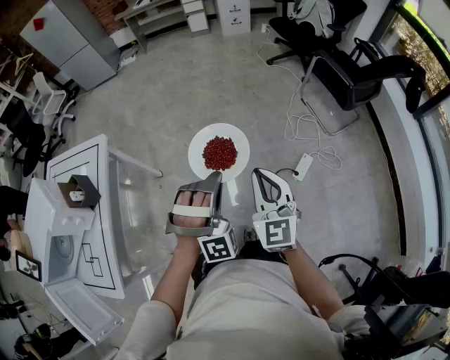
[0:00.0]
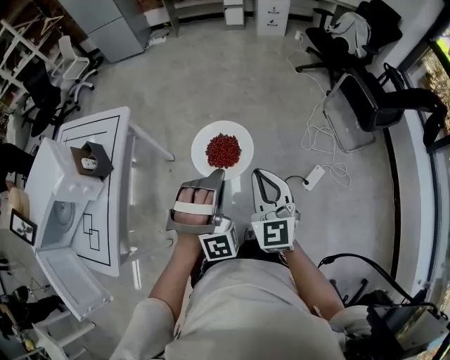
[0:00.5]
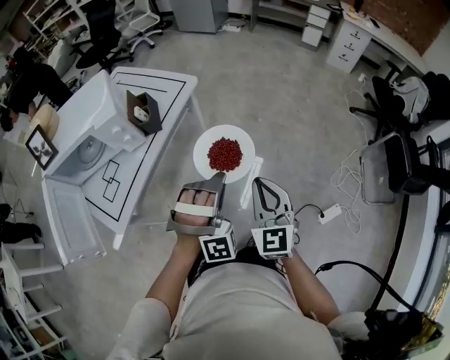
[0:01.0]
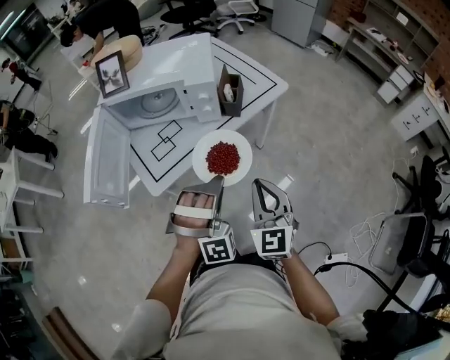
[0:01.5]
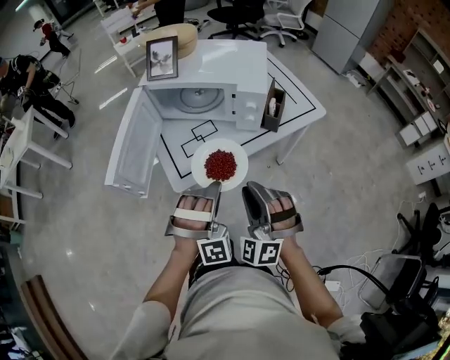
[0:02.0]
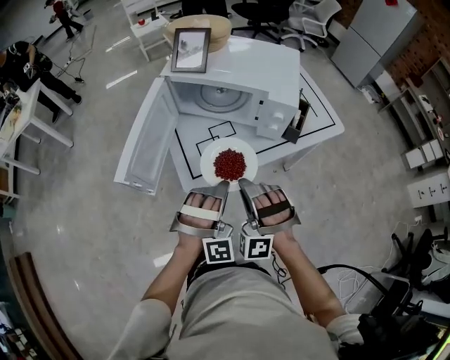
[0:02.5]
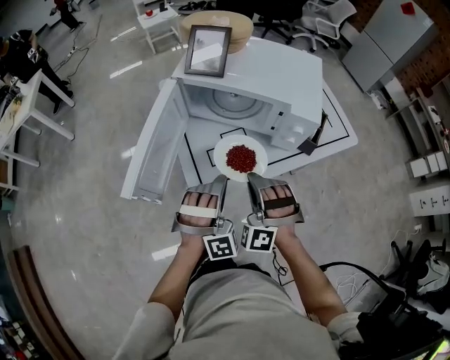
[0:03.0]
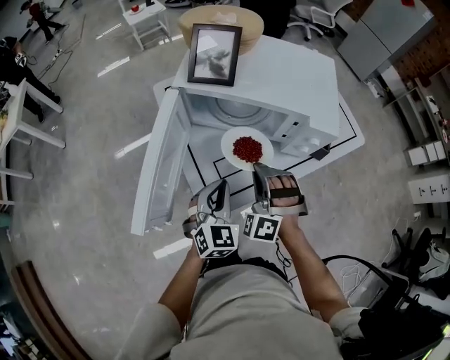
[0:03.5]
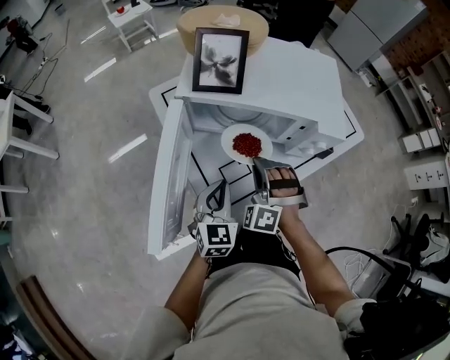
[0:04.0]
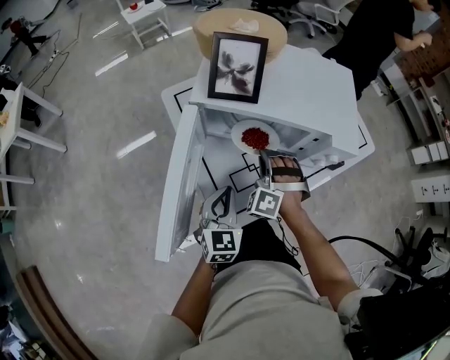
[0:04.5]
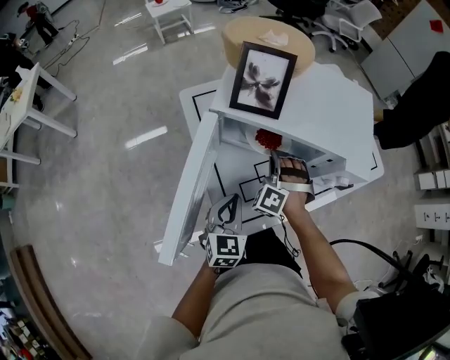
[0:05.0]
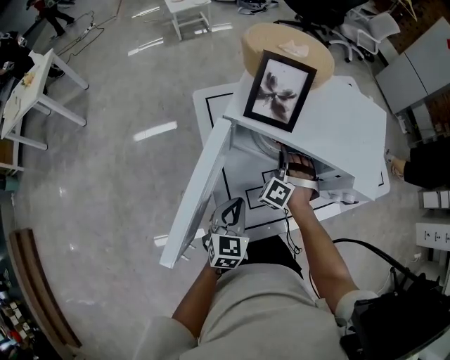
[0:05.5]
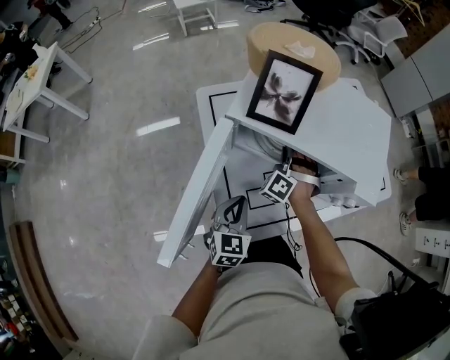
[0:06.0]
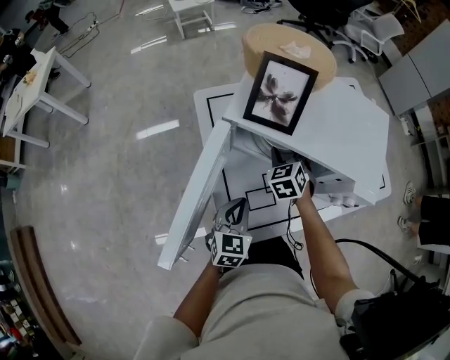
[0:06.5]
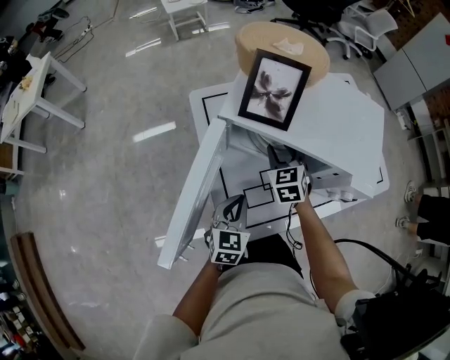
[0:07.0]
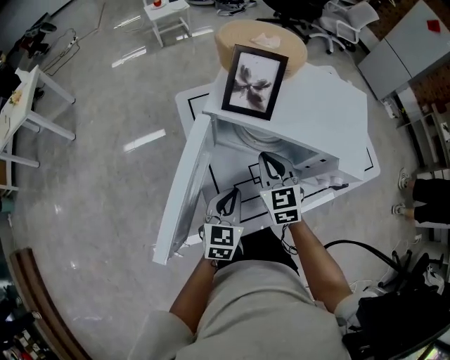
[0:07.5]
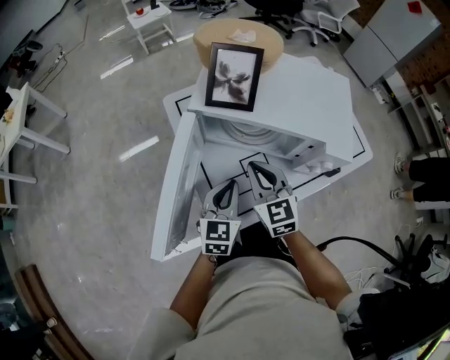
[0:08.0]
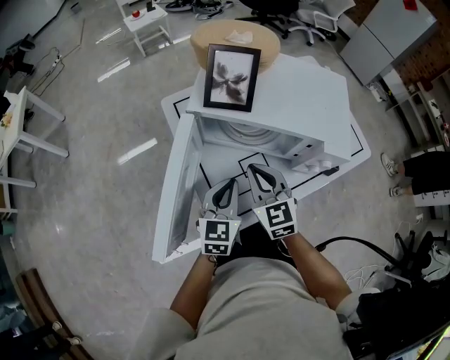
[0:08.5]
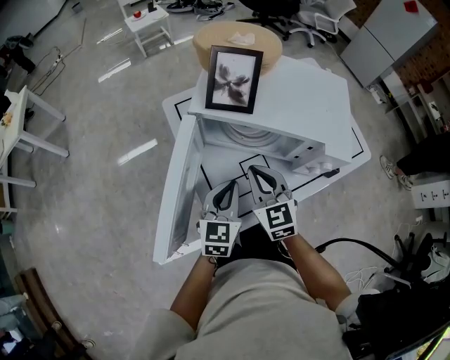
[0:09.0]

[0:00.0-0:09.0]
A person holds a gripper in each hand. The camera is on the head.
0:00.0 to 0:02.0: Both grippers are carried roughly 50 cm. The right gripper changes its angle by approximately 90 degrees, and opens up, while the left gripper swivels roughly 70 degrees.
0:02.0 to 0:04.5: The left gripper goes roughly 25 cm to the left, forward and downward, and rotates around the line of its fingers by about 80 degrees, counterclockwise from behind; the right gripper goes some 35 cm forward, to the left and downward, and changes its angle by about 30 degrees.
0:04.5 to 0:07.0: The right gripper shifts roughly 10 cm forward, rolls clockwise, seen from behind, by some 50 degrees, and opens.
0:07.0 to 0:09.0: The right gripper shifts roughly 15 cm backward and upward, and closes. Meanwhile the left gripper moves upward, some 5 cm.

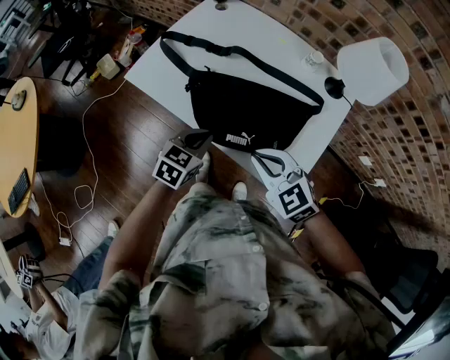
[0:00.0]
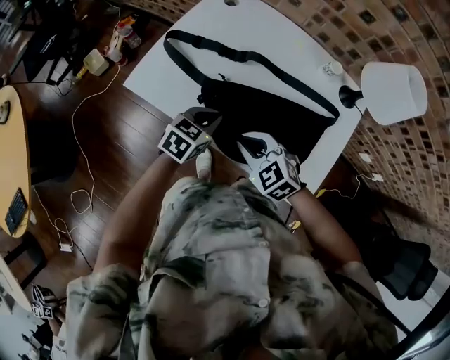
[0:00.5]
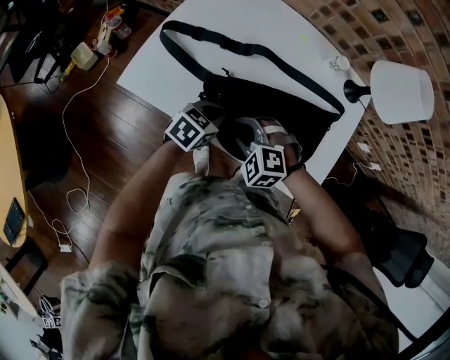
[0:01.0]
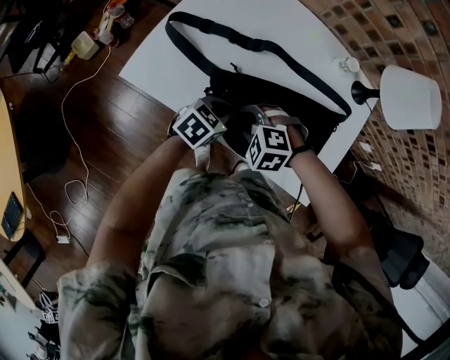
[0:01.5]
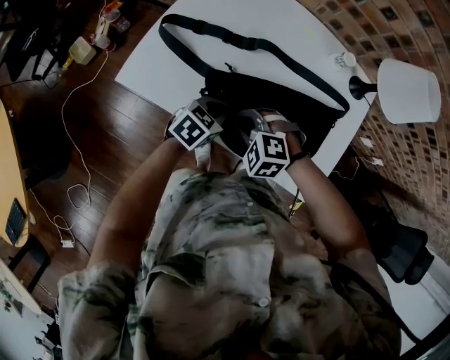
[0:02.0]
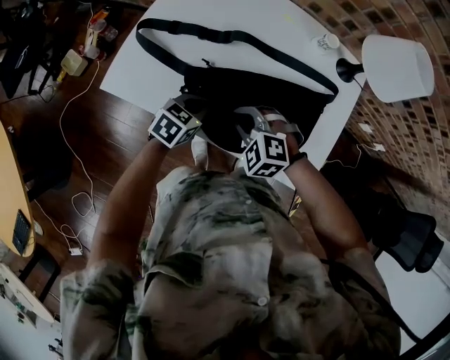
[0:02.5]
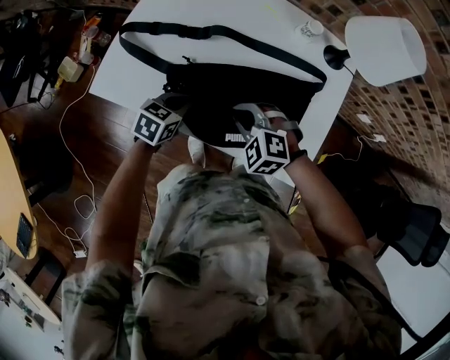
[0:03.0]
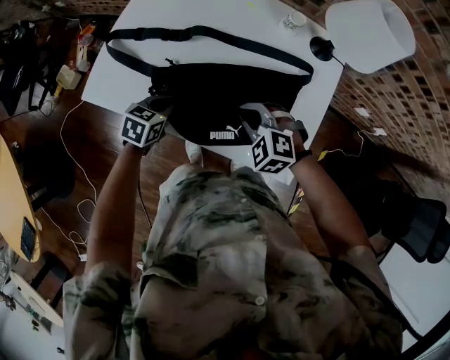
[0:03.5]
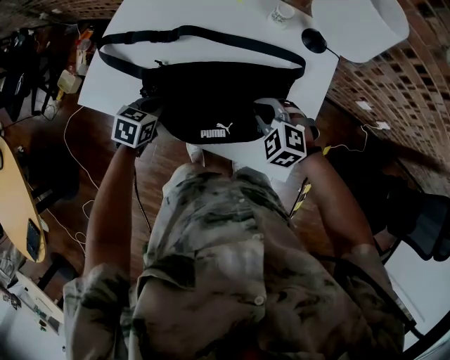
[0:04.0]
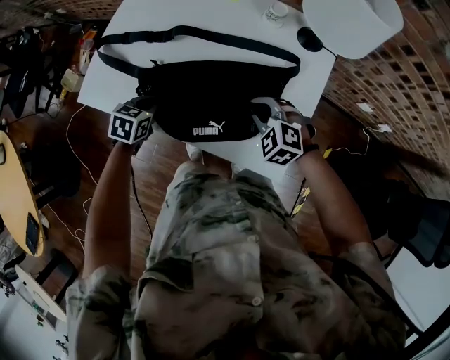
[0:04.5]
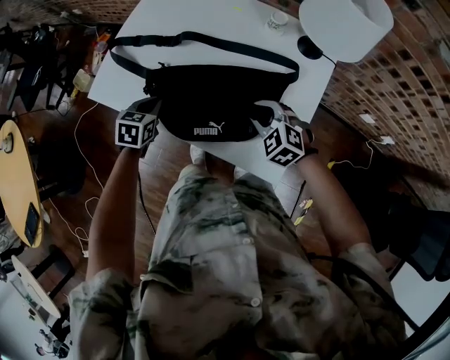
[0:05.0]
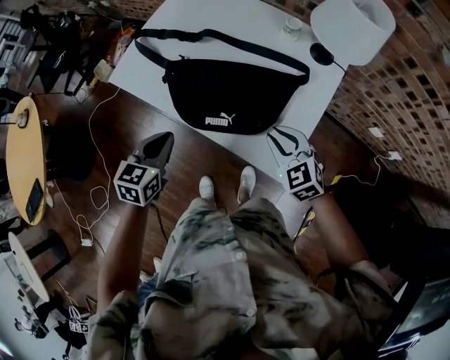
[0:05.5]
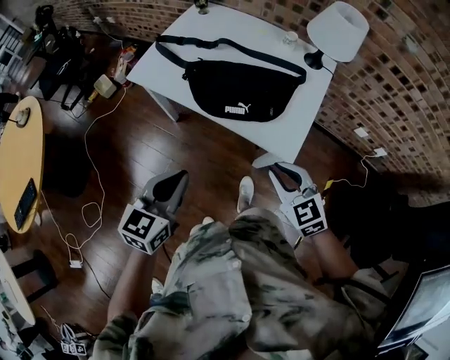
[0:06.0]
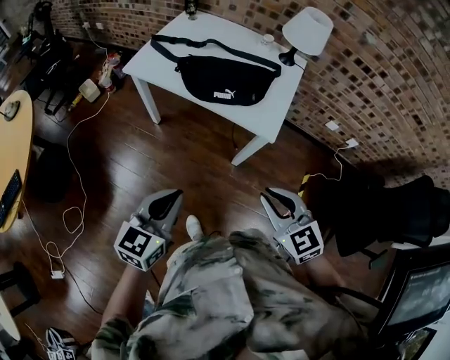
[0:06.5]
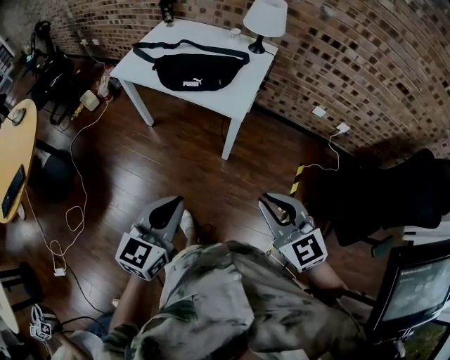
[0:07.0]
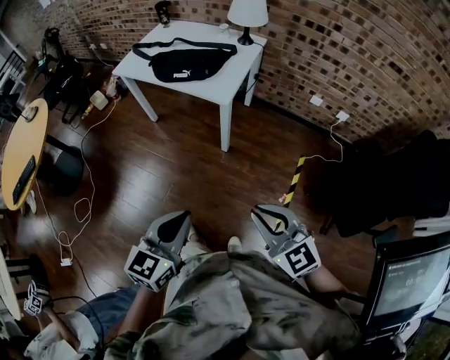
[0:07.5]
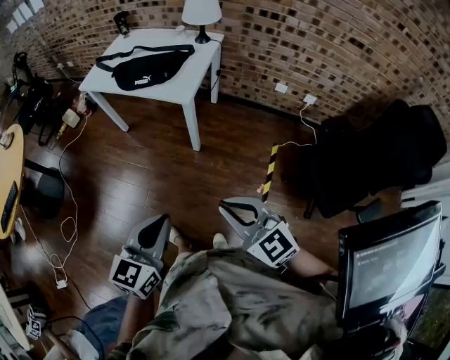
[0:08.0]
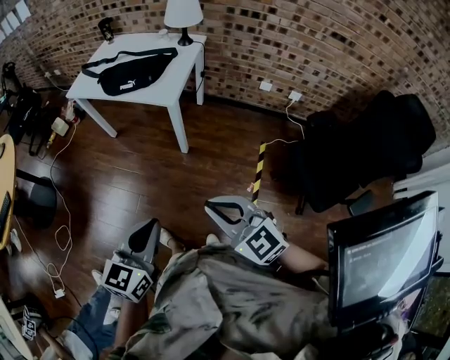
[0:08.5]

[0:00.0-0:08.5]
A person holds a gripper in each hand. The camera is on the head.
0:00.0 to 0:02.0: The left gripper moves some 15 cm, and swivels approximately 20 degrees, while the right gripper moves some 25 cm, changes its angle by approximately 40 degrees, and opens and closes again.
0:02.0 to 0:04.0: The right gripper heads to the right, covering approximately 20 cm, and swivels about 20 degrees.
0:04.0 to 0:06.5: The two grippers travel together, backward, approximately 50 cm. Both grippers travel together upward, some 25 cm. The left gripper points its fingers roughly 30 degrees further upward, while the right gripper swivels approximately 40 degrees.
0:06.5 to 0:08.5: Both grippers travel together backward and to the right, approximately 35 cm.

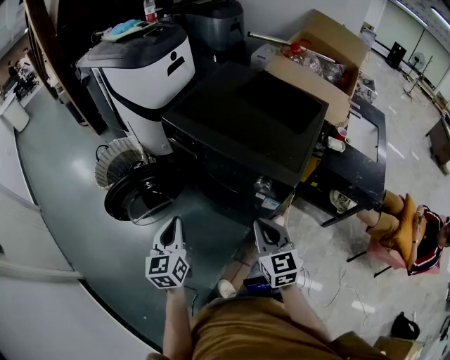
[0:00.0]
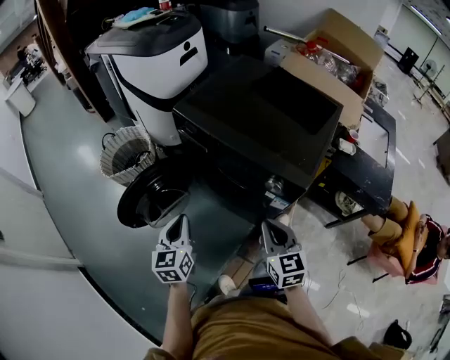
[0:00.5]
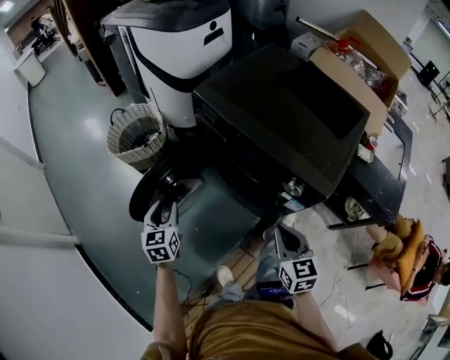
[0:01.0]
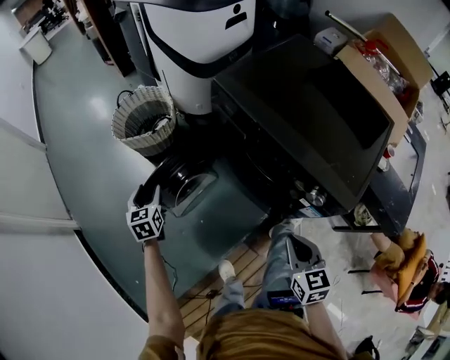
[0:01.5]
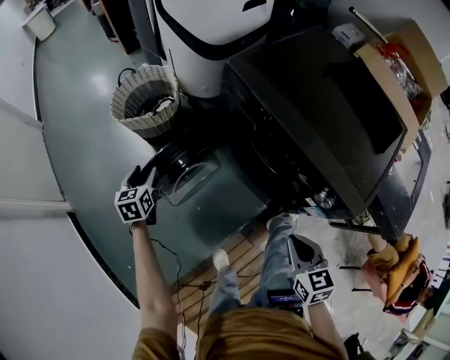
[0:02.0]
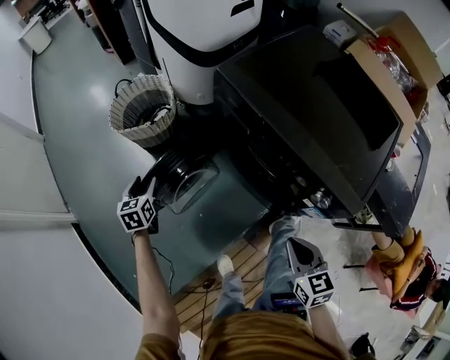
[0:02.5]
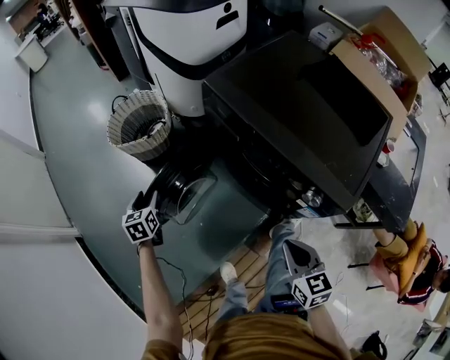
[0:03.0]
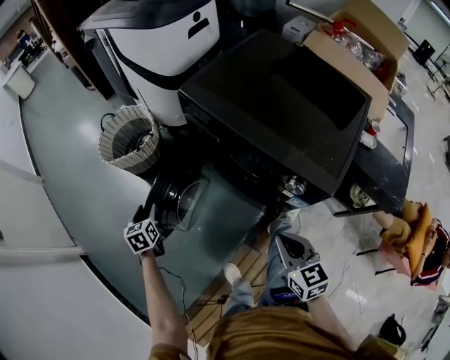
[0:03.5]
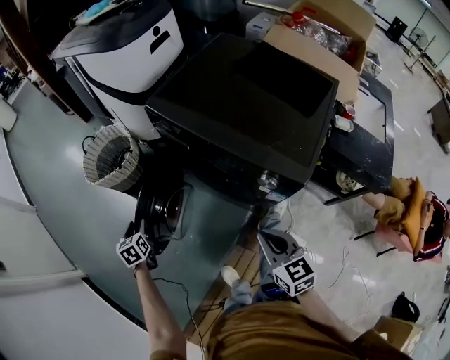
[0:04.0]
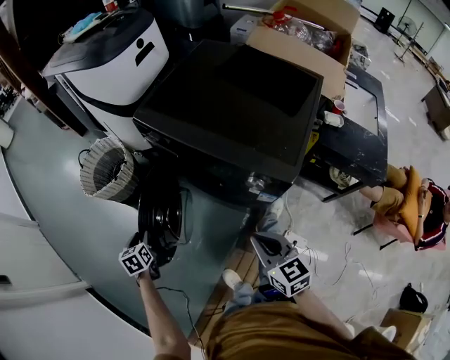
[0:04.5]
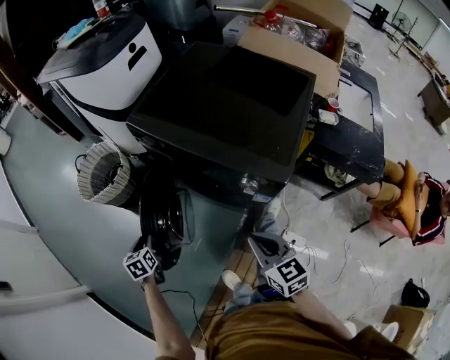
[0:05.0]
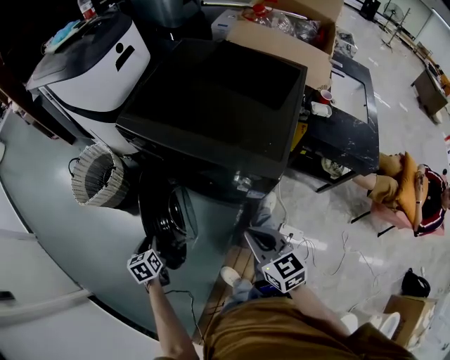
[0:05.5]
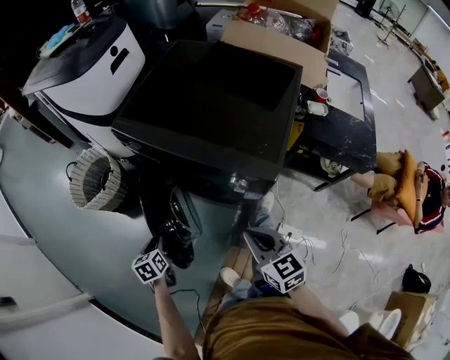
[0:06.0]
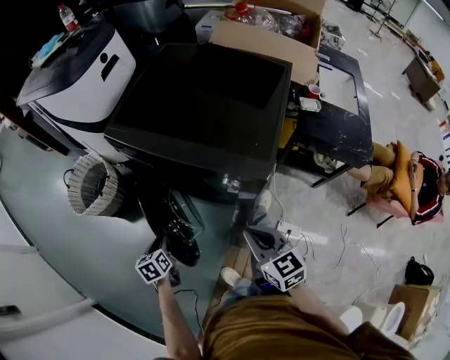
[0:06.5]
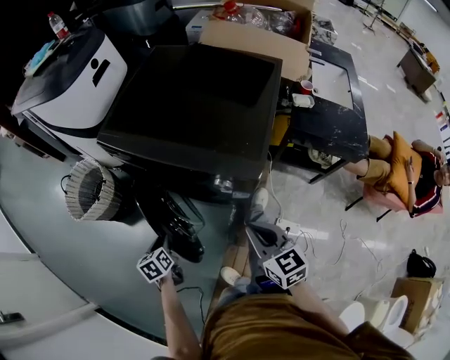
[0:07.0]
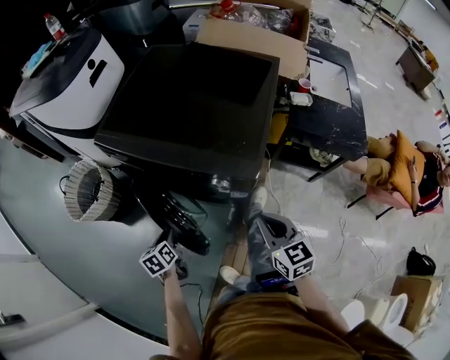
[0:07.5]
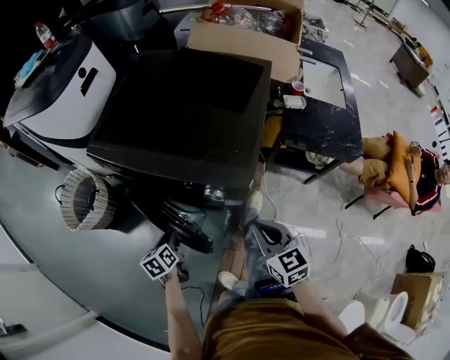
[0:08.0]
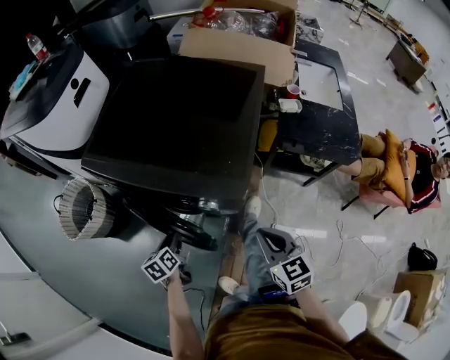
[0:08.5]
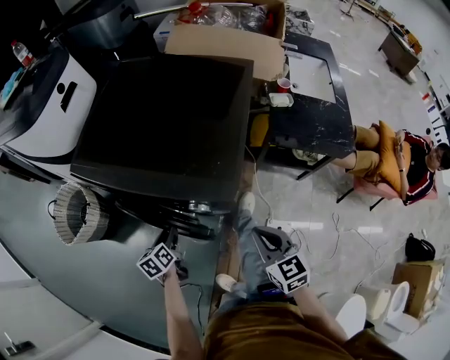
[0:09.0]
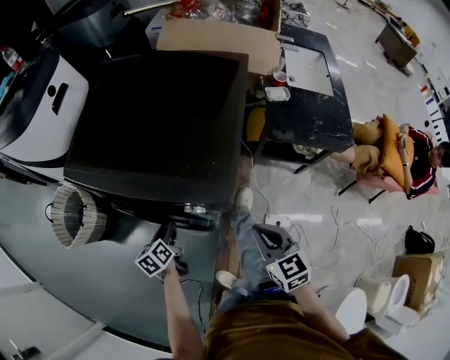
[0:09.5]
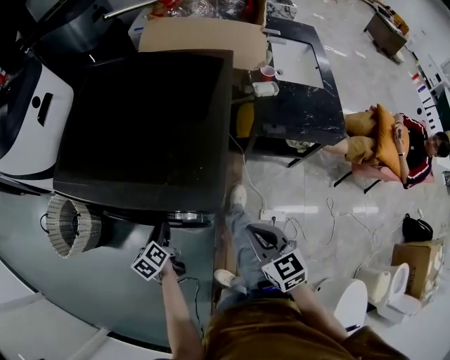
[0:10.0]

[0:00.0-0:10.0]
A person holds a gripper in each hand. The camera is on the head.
0:00.0 to 0:02.0: The right gripper heads downward, covering roughly 10 cm, and rotates approximately 20 degrees. The left gripper is displaced to the left, downward and forward by about 35 cm, swivels roughly 30 degrees, and opens its fingers.
0:02.0 to 0:04.0: The left gripper shifts about 10 cm backward and to the right. Meanwhile the right gripper moves about 5 cm.
0:04.0 to 0:06.0: The left gripper heads to the right, covering approximately 15 cm.
0:06.0 to 0:08.0: Both grippers travel together to the right, about 10 cm.
0:08.0 to 0:10.0: The right gripper shifts approximately 5 cm to the right; the left gripper goes approximately 10 cm forward and to the right.
